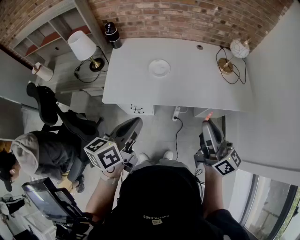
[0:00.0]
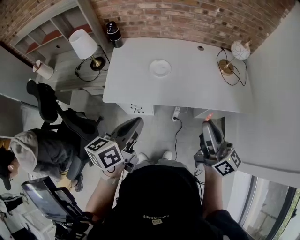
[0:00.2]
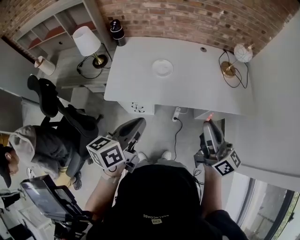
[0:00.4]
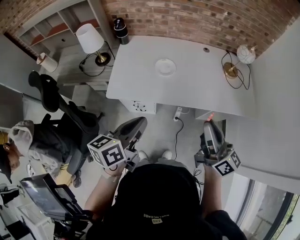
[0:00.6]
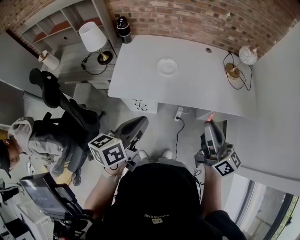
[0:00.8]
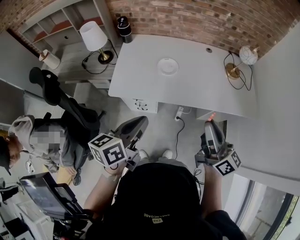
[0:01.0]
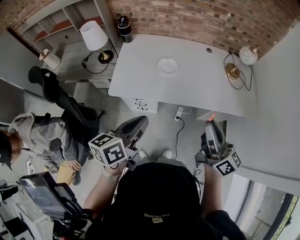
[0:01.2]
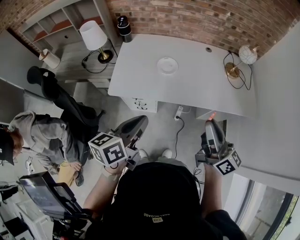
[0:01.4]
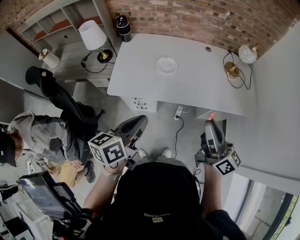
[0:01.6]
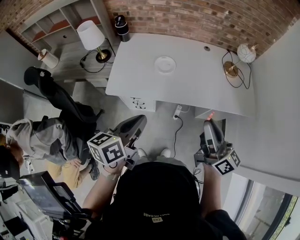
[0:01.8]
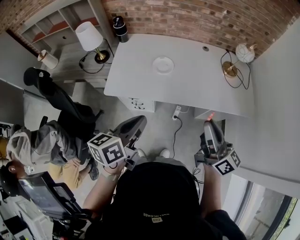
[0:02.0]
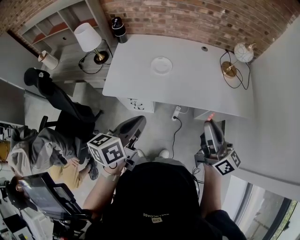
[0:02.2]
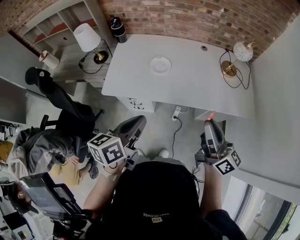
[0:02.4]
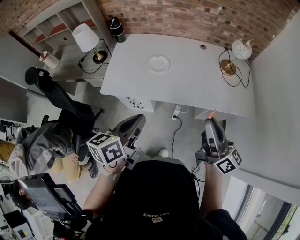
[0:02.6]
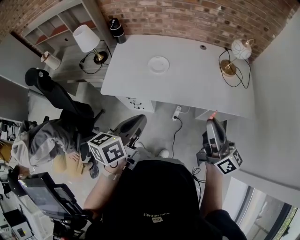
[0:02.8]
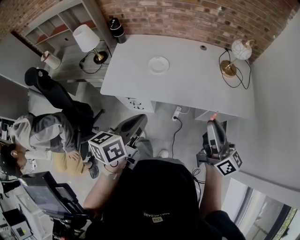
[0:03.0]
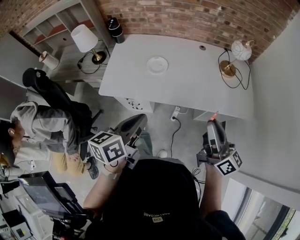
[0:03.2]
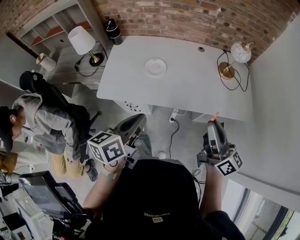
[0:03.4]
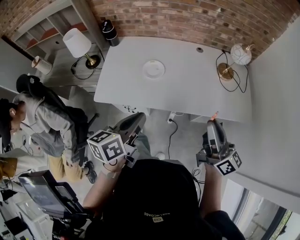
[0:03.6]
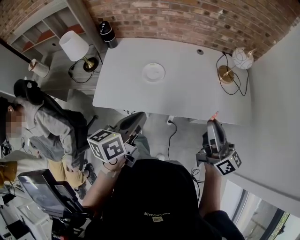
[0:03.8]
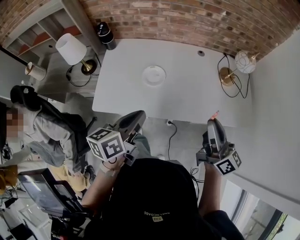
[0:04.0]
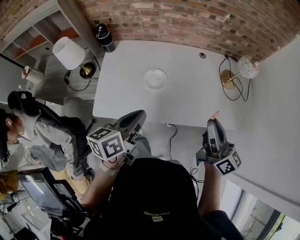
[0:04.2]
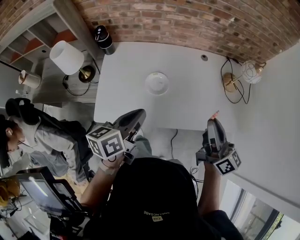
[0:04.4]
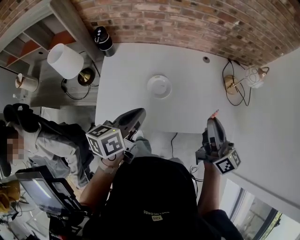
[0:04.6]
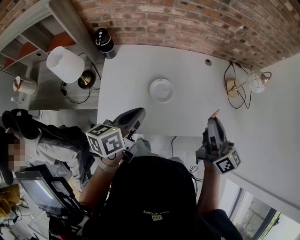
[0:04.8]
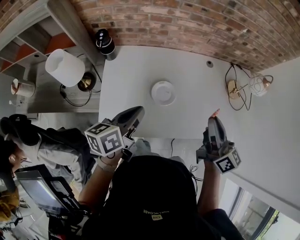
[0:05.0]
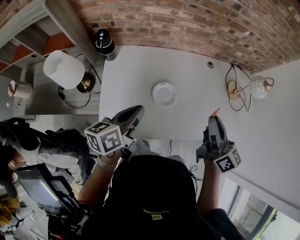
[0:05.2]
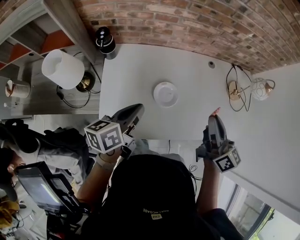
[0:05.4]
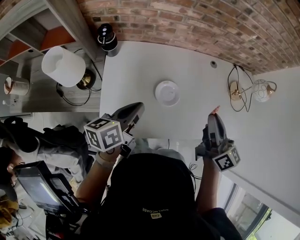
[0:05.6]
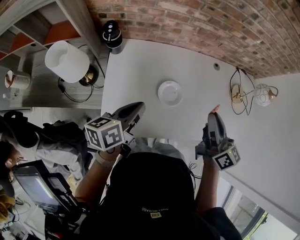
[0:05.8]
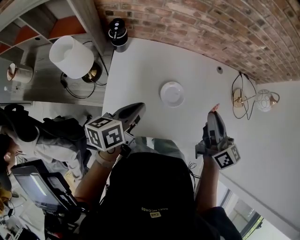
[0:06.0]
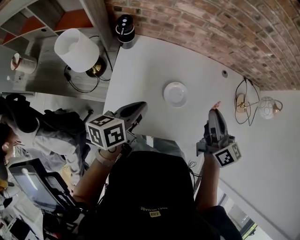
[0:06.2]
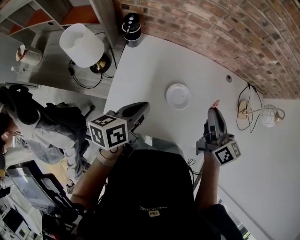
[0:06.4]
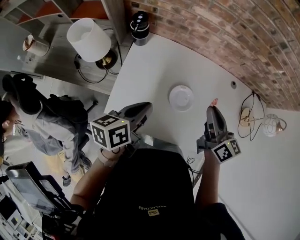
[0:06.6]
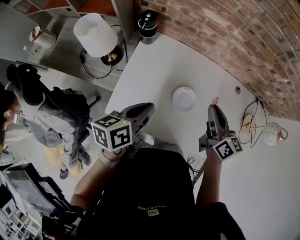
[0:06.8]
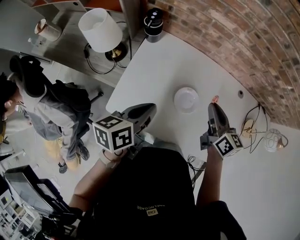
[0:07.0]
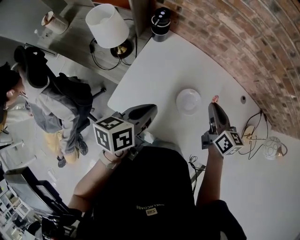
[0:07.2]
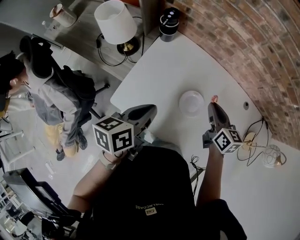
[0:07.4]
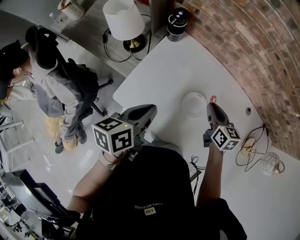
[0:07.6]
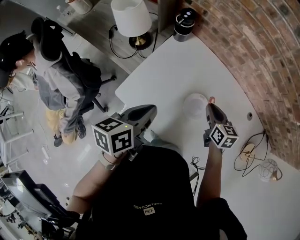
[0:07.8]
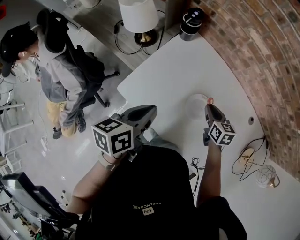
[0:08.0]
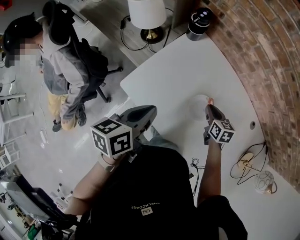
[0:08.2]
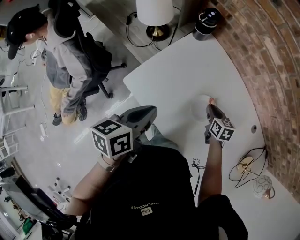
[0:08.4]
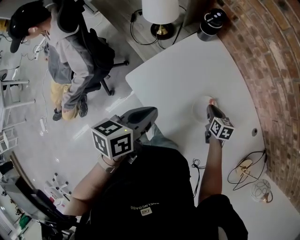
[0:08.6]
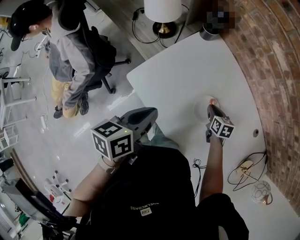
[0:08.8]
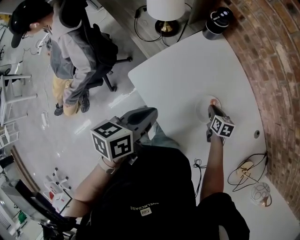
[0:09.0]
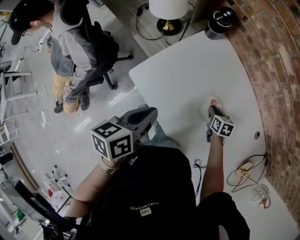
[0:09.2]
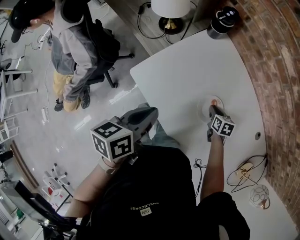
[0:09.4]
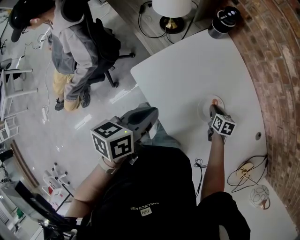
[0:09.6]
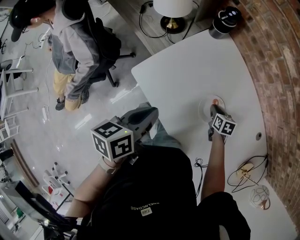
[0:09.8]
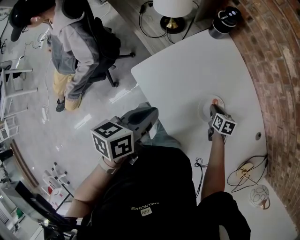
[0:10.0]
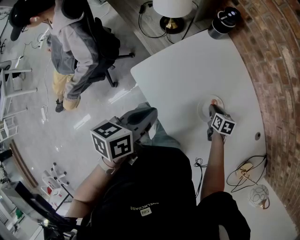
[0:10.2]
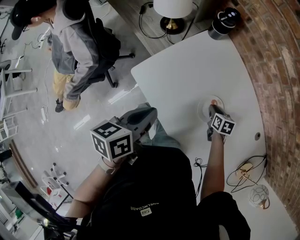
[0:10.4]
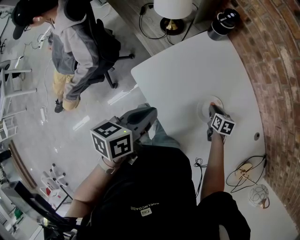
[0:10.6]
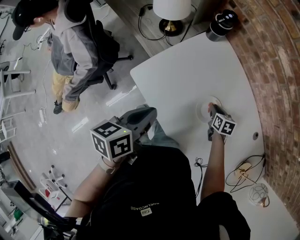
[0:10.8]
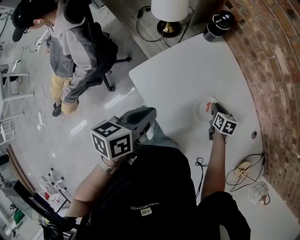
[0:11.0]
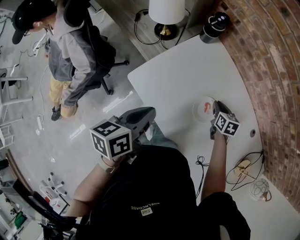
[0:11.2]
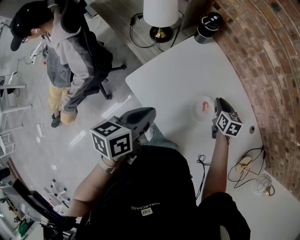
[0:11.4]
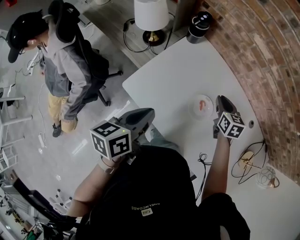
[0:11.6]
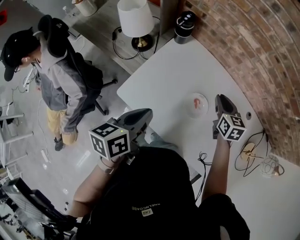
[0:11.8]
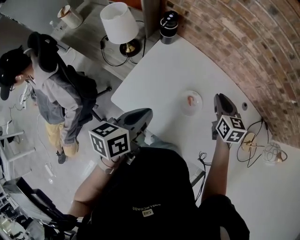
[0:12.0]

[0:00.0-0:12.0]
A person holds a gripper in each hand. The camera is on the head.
0:00.0 to 0:01.6: The grippers make only small movements.
0:01.6 to 0:03.0: The grippers both shift to the right by some 10 cm.
0:03.0 to 0:04.4: The two grippers go some 20 cm forward and to the left.
0:04.4 to 0:06.0: The grippers both shift to the left and forward by about 20 cm.
0:06.0 to 0:07.6: The left gripper changes its angle by roughly 30 degrees; the right gripper shifts about 15 cm downward, and rotates roughly 40 degrees.
0:07.6 to 0:09.0: The left gripper moves backward, about 5 cm. Meanwhile the right gripper goes approximately 20 cm downward, and swivels approximately 30 degrees.
0:09.0 to 0:10.4: The grippers move only a little.
0:10.4 to 0:12.0: The left gripper heads upward, covering some 5 cm, and swivels about 20 degrees. The right gripper is displaced upward by about 25 cm, and rotates approximately 30 degrees.

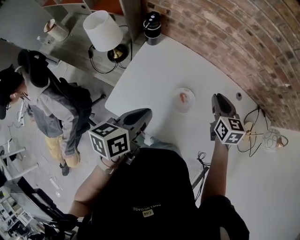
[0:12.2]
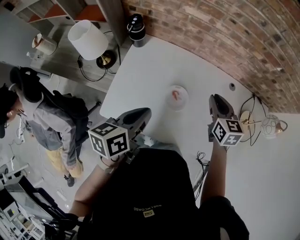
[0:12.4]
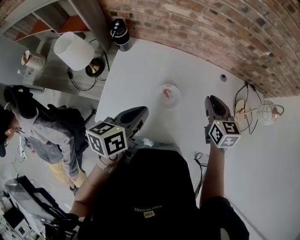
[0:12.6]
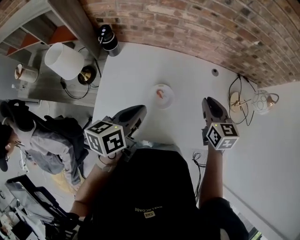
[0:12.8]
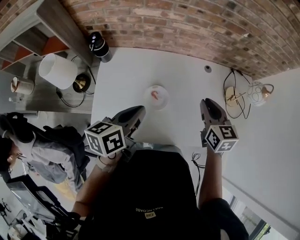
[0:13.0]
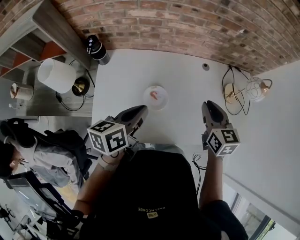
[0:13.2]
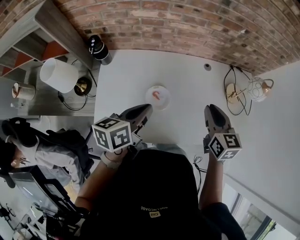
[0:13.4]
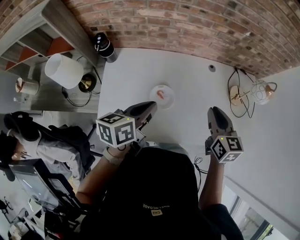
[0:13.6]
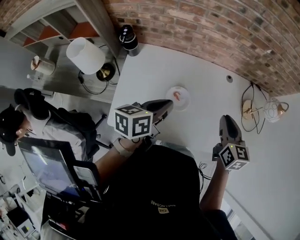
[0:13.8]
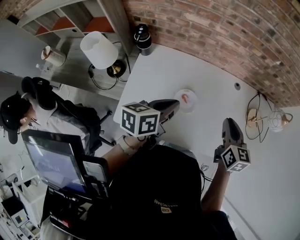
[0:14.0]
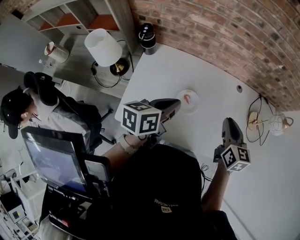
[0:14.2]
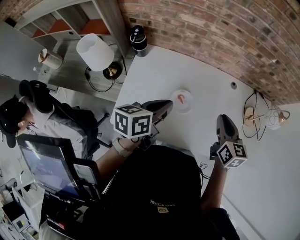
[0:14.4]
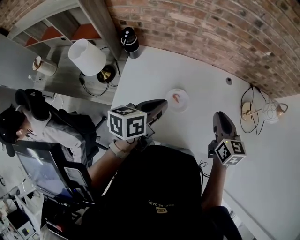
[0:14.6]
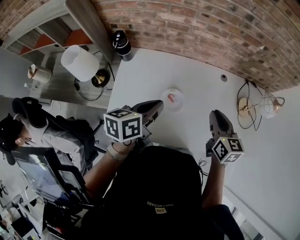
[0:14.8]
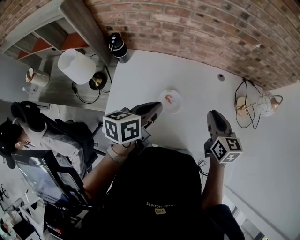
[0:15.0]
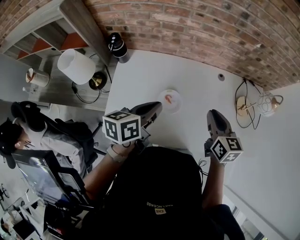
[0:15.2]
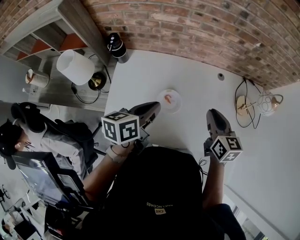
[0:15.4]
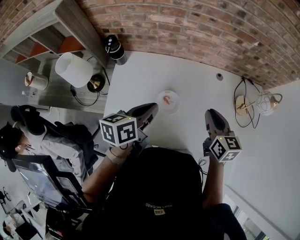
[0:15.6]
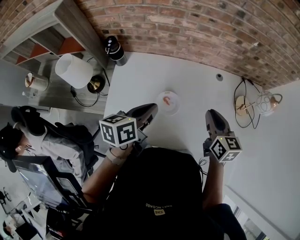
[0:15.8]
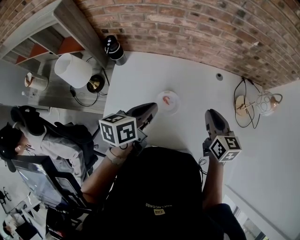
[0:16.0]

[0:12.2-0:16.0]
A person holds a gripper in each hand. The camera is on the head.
0:12.2 to 0:13.4: The right gripper moves to the right, backward and upward, about 15 cm, and turns by roughly 20 degrees. Meanwhile the left gripper shifts roughly 10 cm to the right and forward, and changes its angle by about 20 degrees.
0:13.4 to 0:16.0: The grippers stay close to where they were, moving slightly.

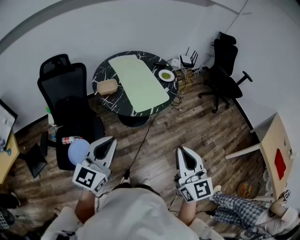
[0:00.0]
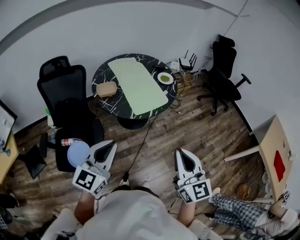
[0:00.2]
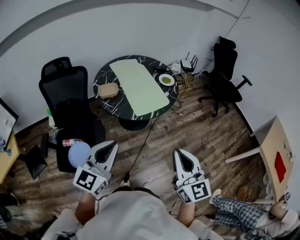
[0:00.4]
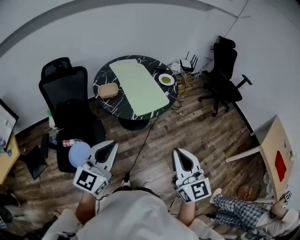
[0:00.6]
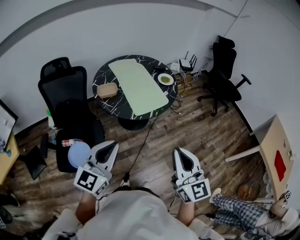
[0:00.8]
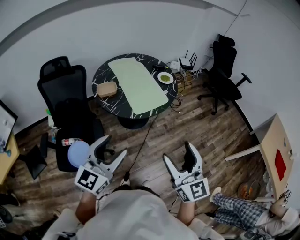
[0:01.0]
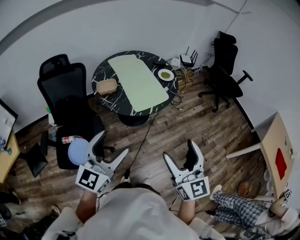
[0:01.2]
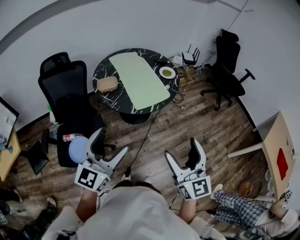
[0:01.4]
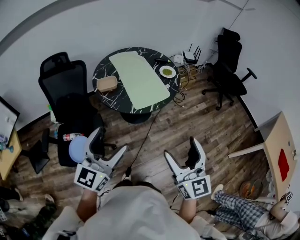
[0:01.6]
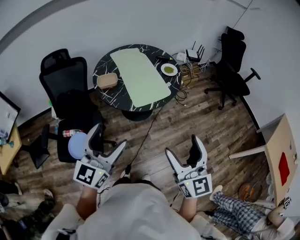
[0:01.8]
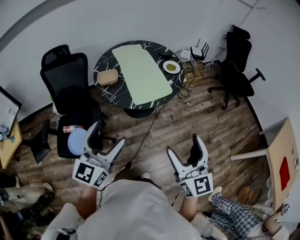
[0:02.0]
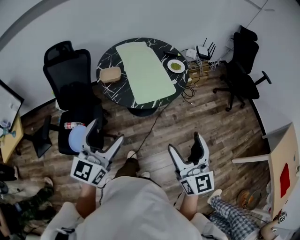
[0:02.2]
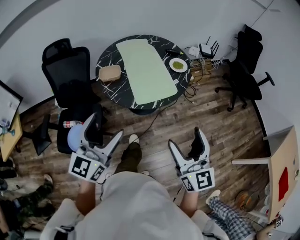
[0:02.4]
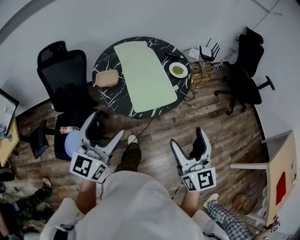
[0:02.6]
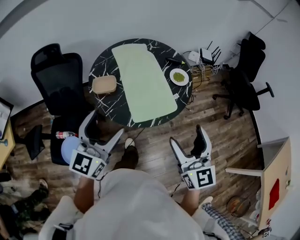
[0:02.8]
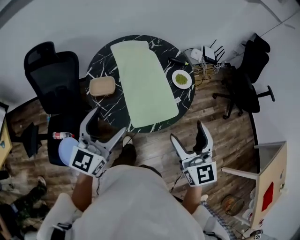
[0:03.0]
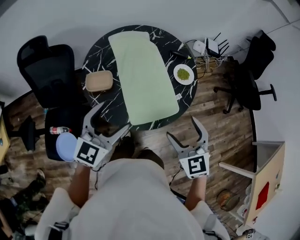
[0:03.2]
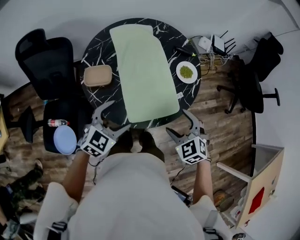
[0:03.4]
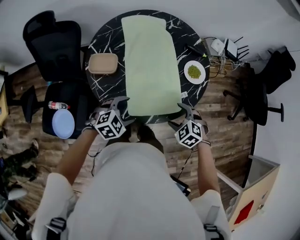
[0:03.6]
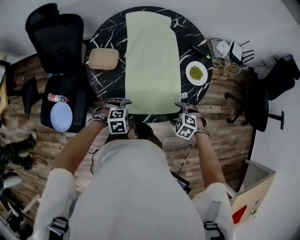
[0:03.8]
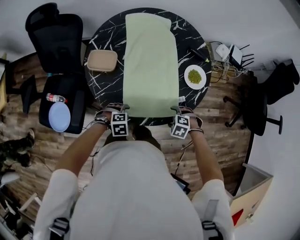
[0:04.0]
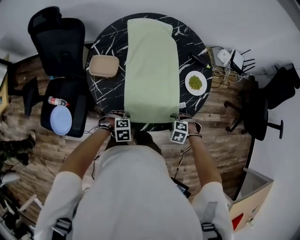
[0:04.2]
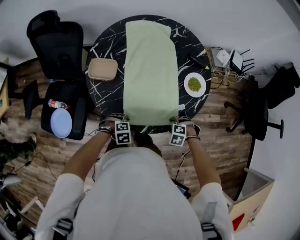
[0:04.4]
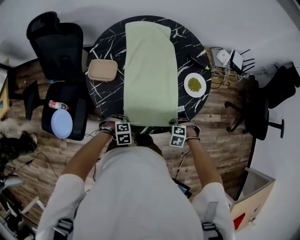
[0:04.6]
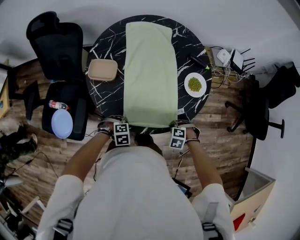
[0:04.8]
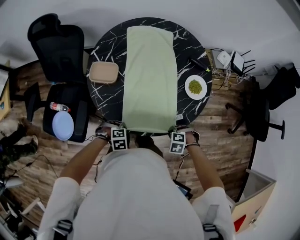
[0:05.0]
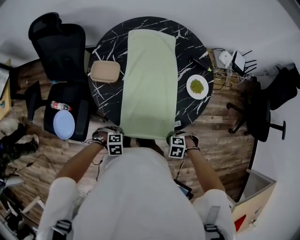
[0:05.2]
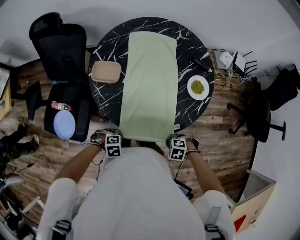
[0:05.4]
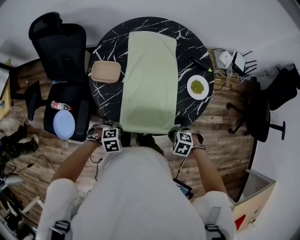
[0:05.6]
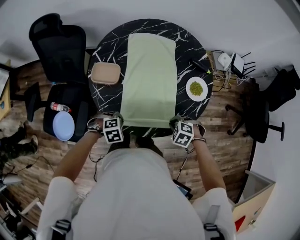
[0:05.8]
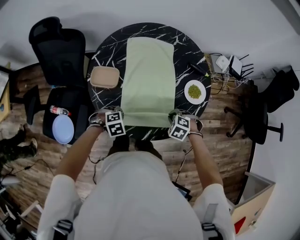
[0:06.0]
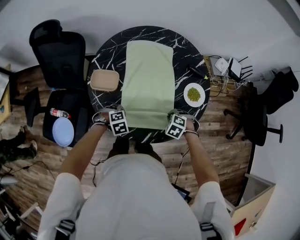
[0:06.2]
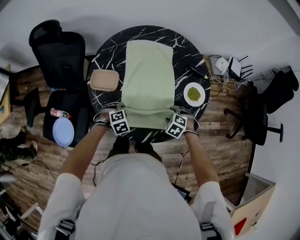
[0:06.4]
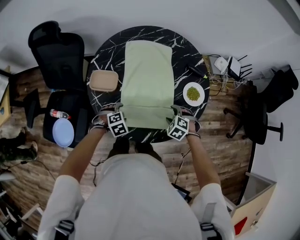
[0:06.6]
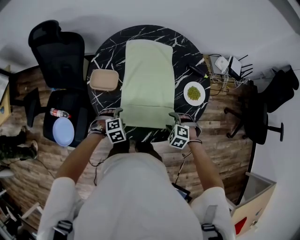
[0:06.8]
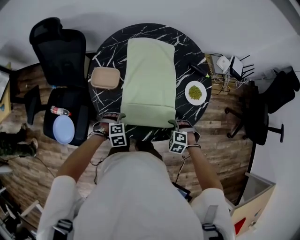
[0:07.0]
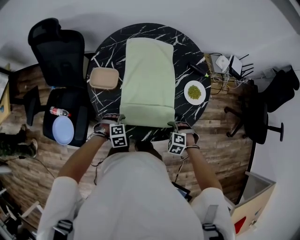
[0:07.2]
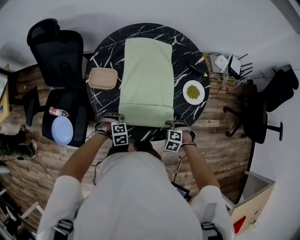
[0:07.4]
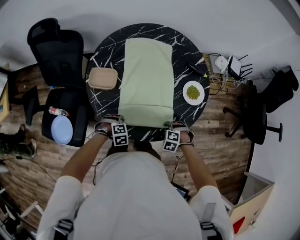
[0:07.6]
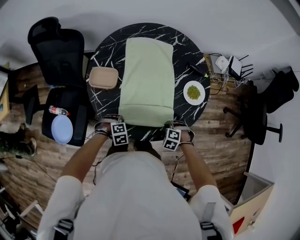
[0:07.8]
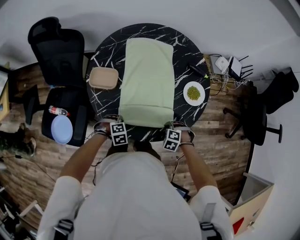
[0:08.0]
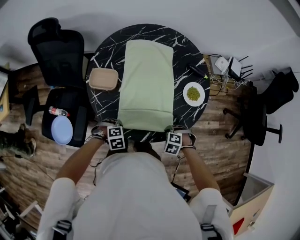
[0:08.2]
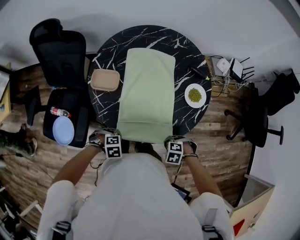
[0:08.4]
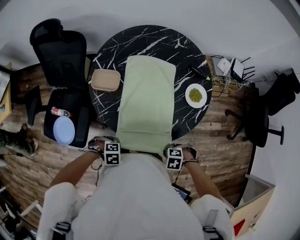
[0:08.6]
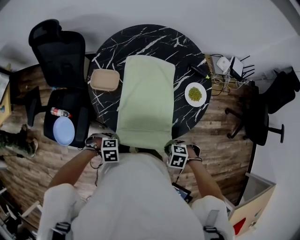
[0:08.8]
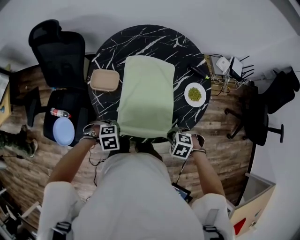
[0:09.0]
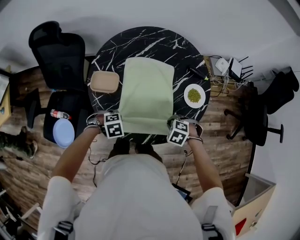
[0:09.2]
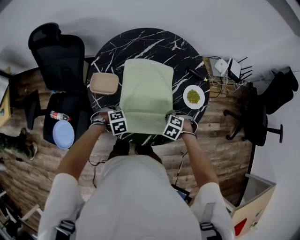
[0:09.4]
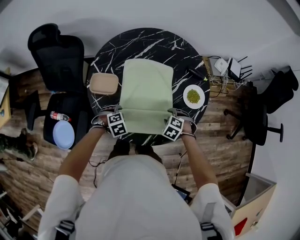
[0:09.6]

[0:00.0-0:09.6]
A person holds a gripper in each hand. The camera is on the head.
0:00.0 to 0:01.6: The right gripper opens. Meanwhile the left gripper opens its fingers.
0:01.6 to 0:03.2: Both grippers travel together forward, roughly 35 cm. The right gripper tilts its fingers roughly 30 degrees downward.
0:03.2 to 0:04.8: The grippers both shift downward by roughly 35 cm. The right gripper tips its fingers downward by some 60 degrees, and closes its fingers, while the left gripper angles its fingers downward, by some 60 degrees, and closes its fingers.
0:04.8 to 0:06.4: The right gripper ends up roughly 15 cm from where it was, rotates roughly 20 degrees, and opens up. Meanwhile the left gripper changes place by roughly 15 cm.
0:06.4 to 0:08.0: The left gripper shifts by roughly 10 cm, and opens, then closes once more. Meanwhile the right gripper changes place by about 10 cm, and closes up.
0:08.0 to 0:09.6: The left gripper opens up, while the right gripper travels upward and back again, some 10 cm each way, and opens.
